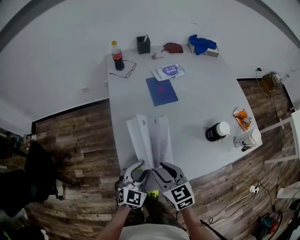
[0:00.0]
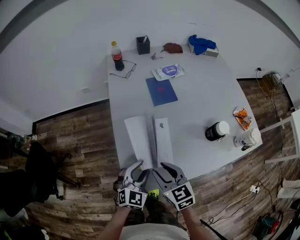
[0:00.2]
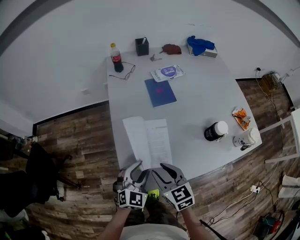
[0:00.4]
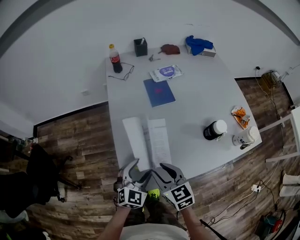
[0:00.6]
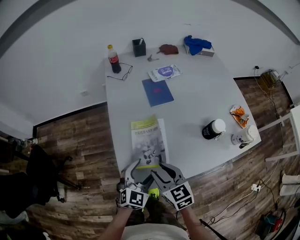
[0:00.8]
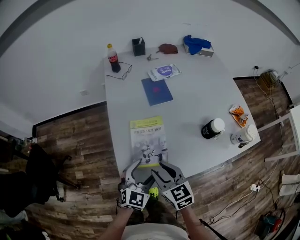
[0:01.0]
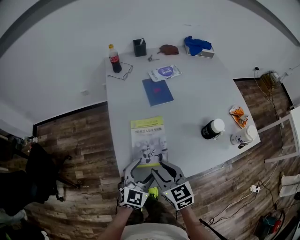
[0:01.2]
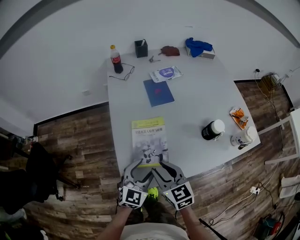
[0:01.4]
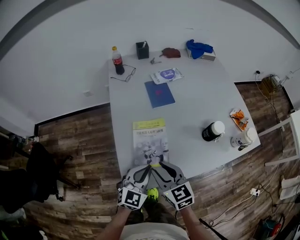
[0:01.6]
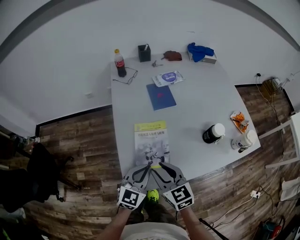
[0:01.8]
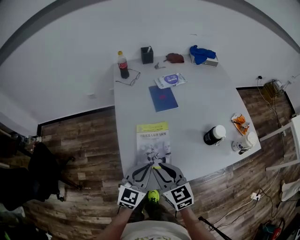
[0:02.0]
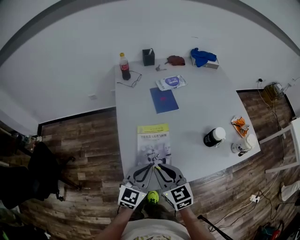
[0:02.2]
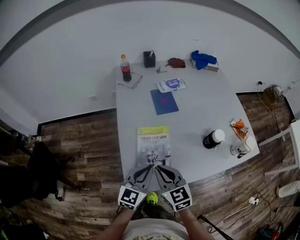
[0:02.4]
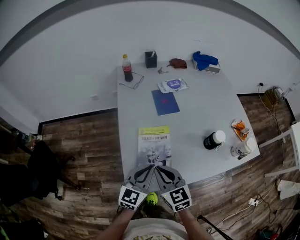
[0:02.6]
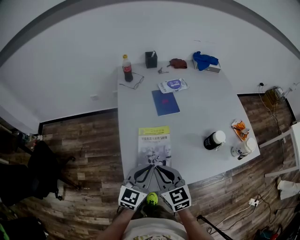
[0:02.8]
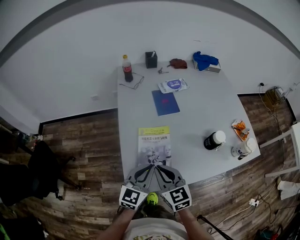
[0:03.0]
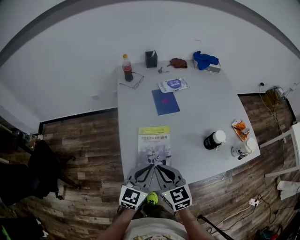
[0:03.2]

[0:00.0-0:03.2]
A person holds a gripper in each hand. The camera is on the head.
0:00.0 to 0:01.6: The left gripper shifts by about 5 cm, and opens, then closes again.
0:01.6 to 0:03.2: The right gripper closes its fingers.

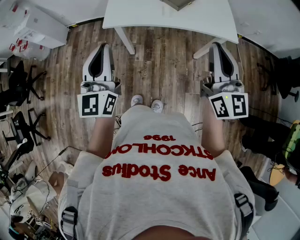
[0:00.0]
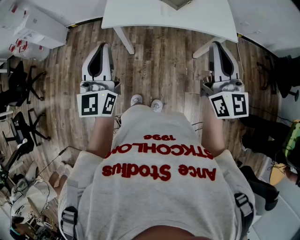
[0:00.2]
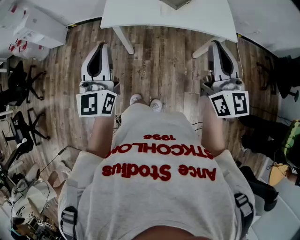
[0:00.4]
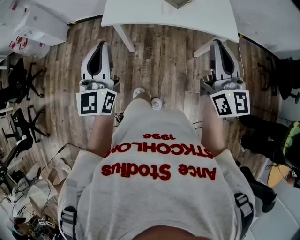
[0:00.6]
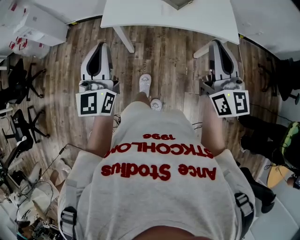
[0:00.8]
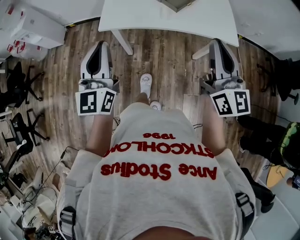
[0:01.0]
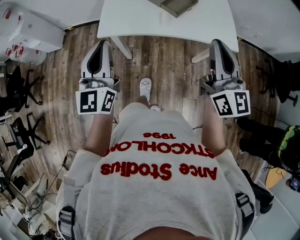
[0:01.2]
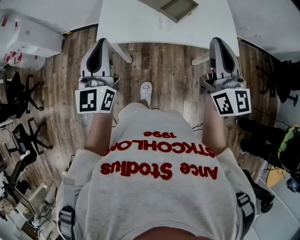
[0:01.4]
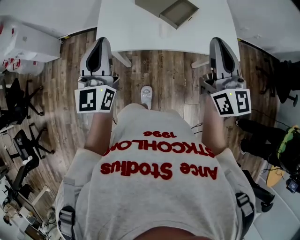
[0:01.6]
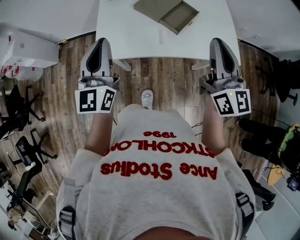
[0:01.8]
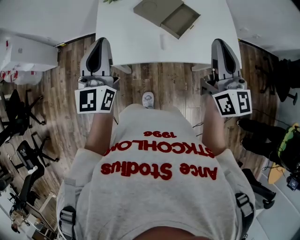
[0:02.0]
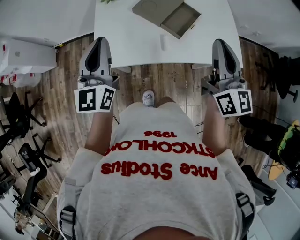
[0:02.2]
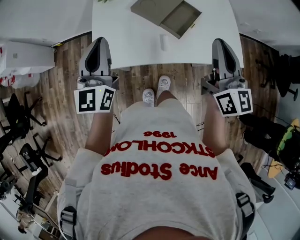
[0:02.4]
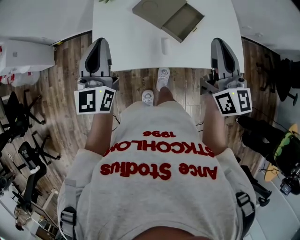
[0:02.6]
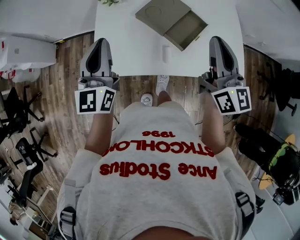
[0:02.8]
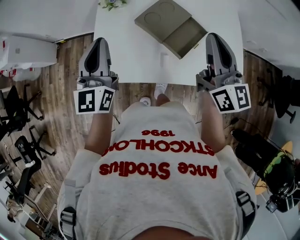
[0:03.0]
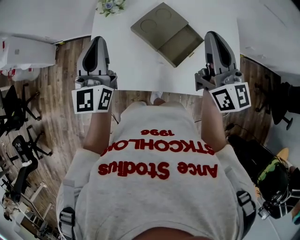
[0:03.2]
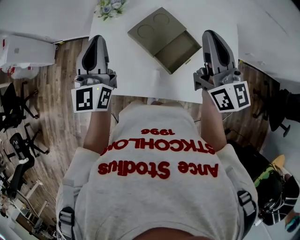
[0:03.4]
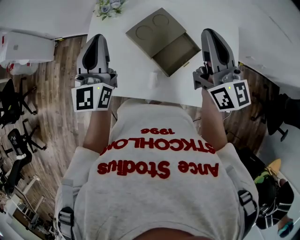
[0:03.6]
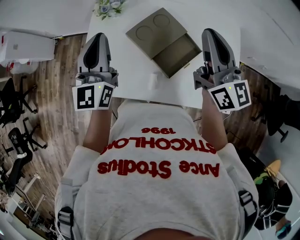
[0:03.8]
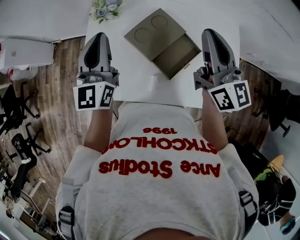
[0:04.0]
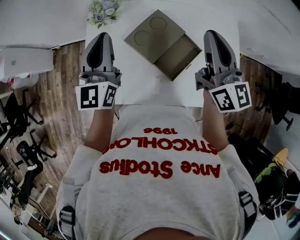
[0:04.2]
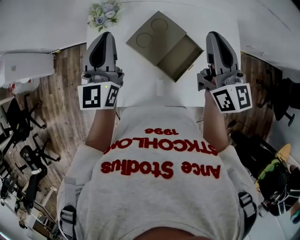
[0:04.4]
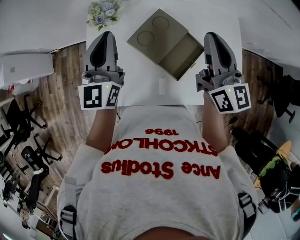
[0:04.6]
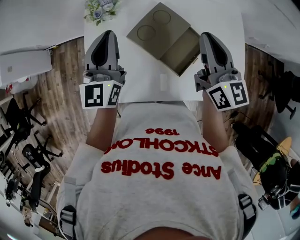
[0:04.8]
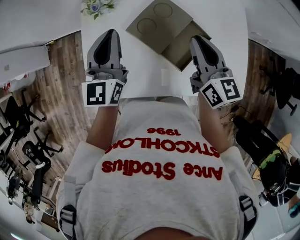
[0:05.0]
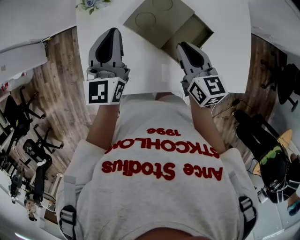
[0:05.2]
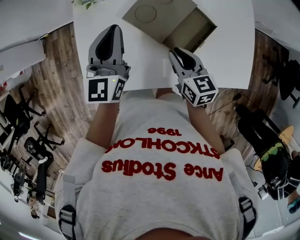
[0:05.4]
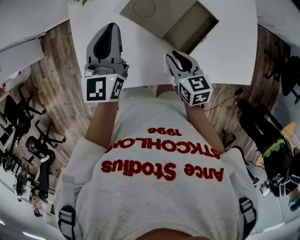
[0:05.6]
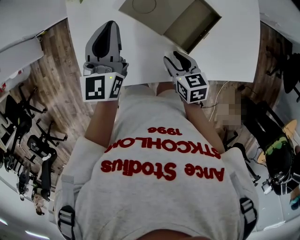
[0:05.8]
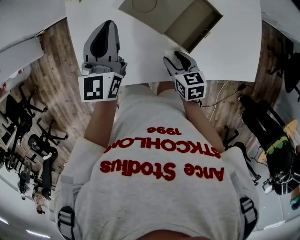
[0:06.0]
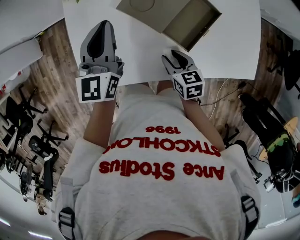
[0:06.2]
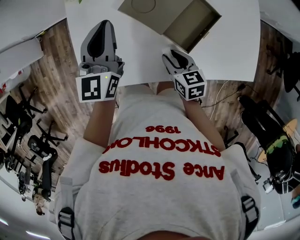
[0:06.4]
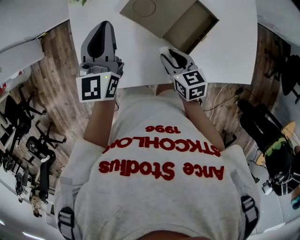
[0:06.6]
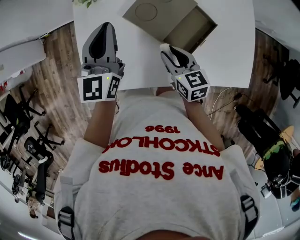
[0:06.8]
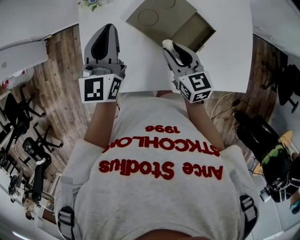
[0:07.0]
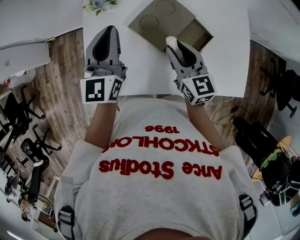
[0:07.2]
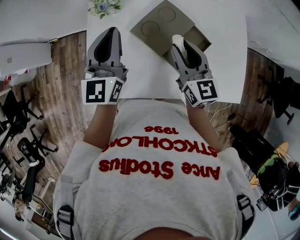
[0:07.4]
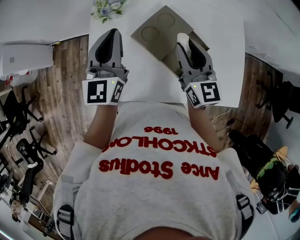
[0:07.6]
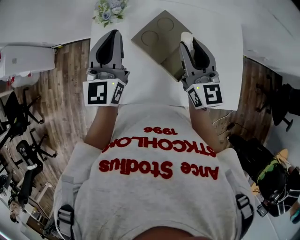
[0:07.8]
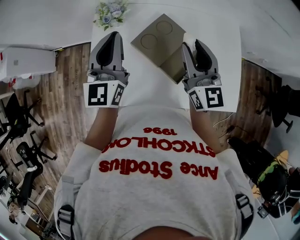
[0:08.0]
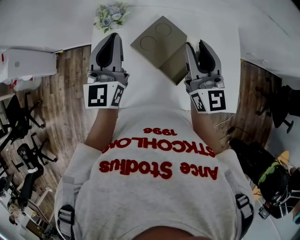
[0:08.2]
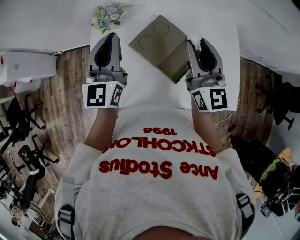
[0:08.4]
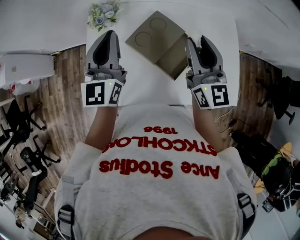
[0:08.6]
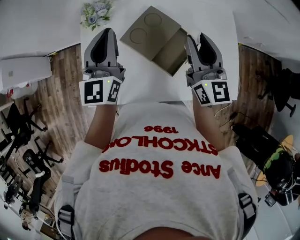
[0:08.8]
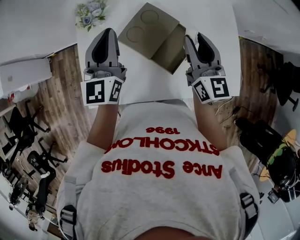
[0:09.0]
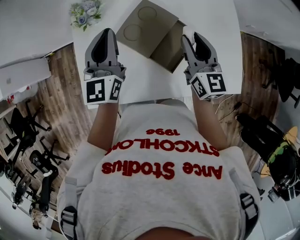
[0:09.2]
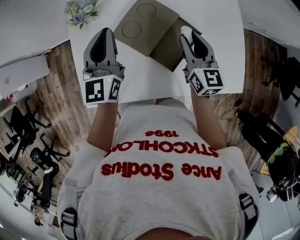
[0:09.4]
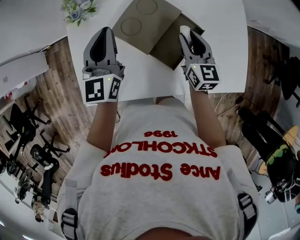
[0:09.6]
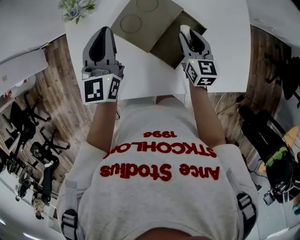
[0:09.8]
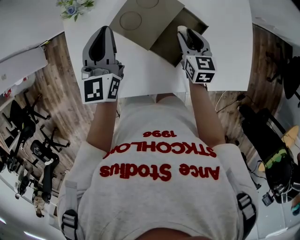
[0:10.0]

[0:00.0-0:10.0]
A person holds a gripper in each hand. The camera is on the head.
0:00.0 to 0:01.4: The two grippers go roughly 15 cm forward.
0:01.4 to 0:02.8: The grippers both shift forward by roughly 20 cm.
0:02.8 to 0:04.2: The left gripper heads forward and to the right, covering some 15 cm. Meanwhile the right gripper is displaced forward by about 15 cm.
0:04.2 to 0:05.8: The left gripper travels downward by roughly 10 cm; the right gripper moves downward and backward, approximately 35 cm, tilts its fingers approximately 50 degrees downward, and opens its fingers.
0:05.8 to 0:07.2: The left gripper travels upward by roughly 5 cm. Meanwhile the right gripper shifts roughly 15 cm upward and forward, and changes its angle by approximately 30 degrees.
0:07.2 to 0:08.6: The left gripper travels upward by approximately 5 cm. Meanwhile the right gripper is displaced upward and to the right by approximately 15 cm, and turns by some 30 degrees.
0:08.6 to 0:10.0: The right gripper goes about 25 cm downward, and points its fingers roughly 40 degrees further downward, while the left gripper moves downward, approximately 10 cm.

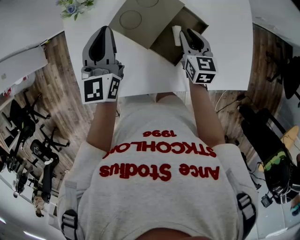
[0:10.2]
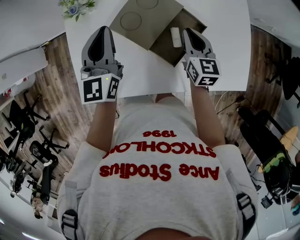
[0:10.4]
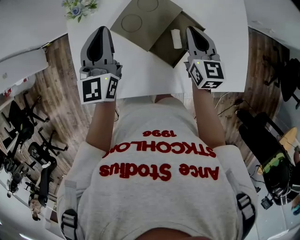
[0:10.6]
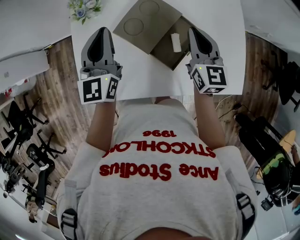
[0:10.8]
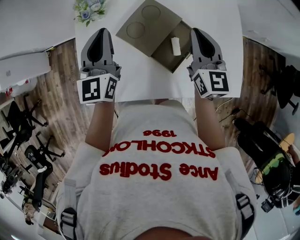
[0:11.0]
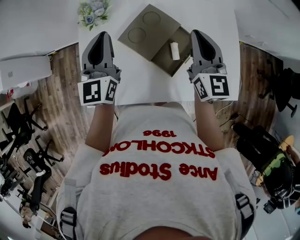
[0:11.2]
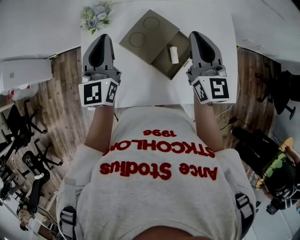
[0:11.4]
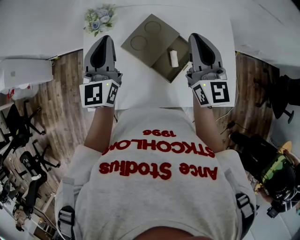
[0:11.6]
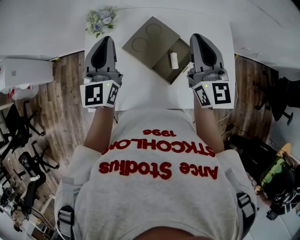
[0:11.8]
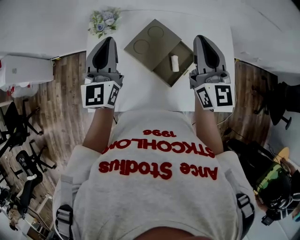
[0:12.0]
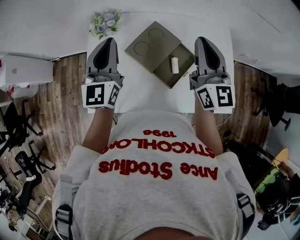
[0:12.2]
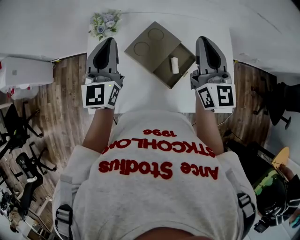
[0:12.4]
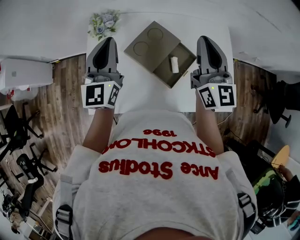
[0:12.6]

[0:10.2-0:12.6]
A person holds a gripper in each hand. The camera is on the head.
0:10.2 to 0:11.4: The right gripper travels upward by some 25 cm, points its fingers about 30 degrees further upward, and closes its fingers; the left gripper travels upward by about 10 cm.
0:11.4 to 0:12.6: The right gripper is displaced upward by approximately 5 cm.

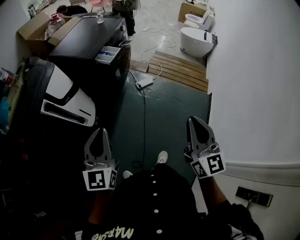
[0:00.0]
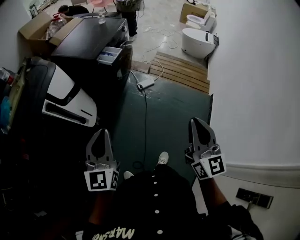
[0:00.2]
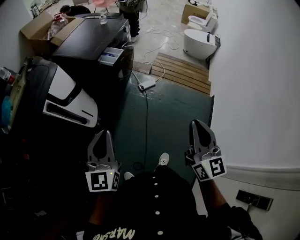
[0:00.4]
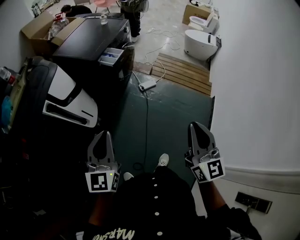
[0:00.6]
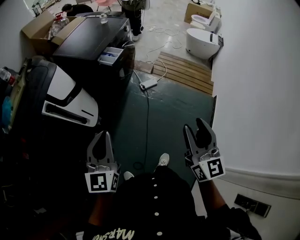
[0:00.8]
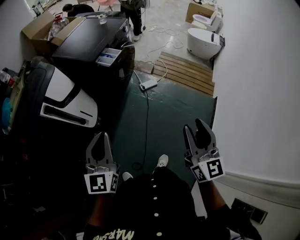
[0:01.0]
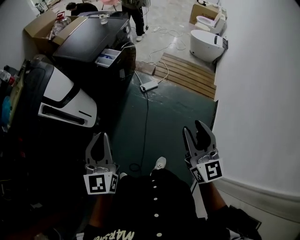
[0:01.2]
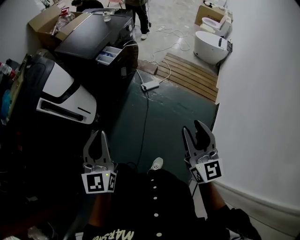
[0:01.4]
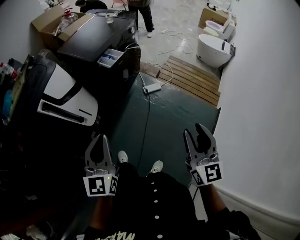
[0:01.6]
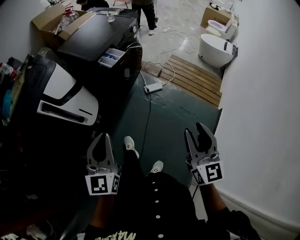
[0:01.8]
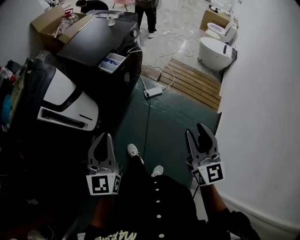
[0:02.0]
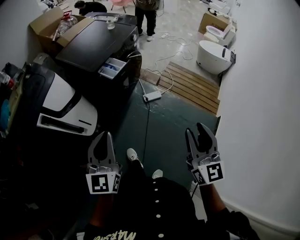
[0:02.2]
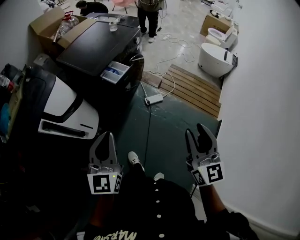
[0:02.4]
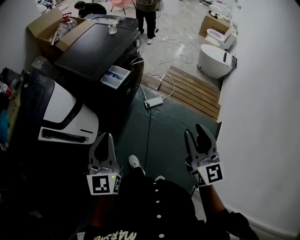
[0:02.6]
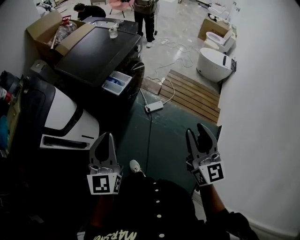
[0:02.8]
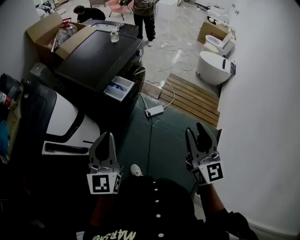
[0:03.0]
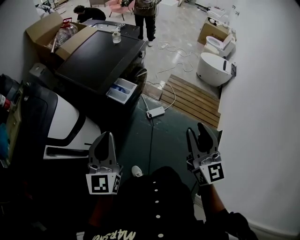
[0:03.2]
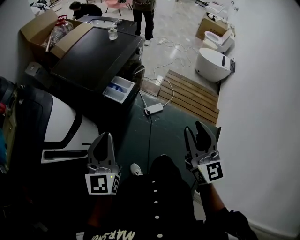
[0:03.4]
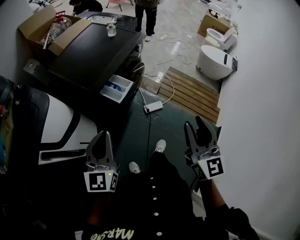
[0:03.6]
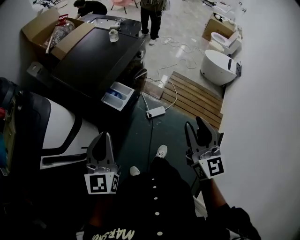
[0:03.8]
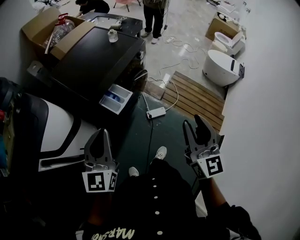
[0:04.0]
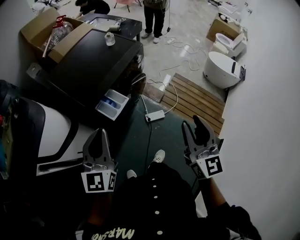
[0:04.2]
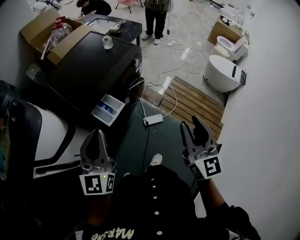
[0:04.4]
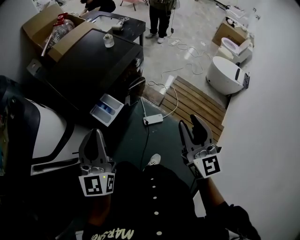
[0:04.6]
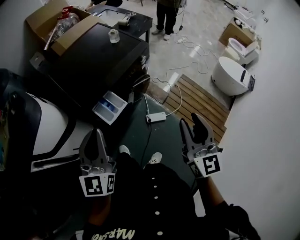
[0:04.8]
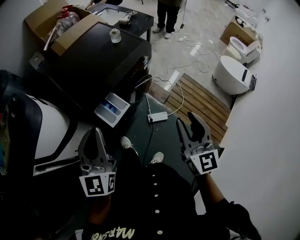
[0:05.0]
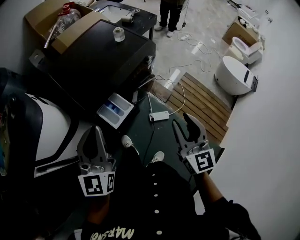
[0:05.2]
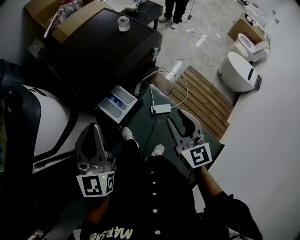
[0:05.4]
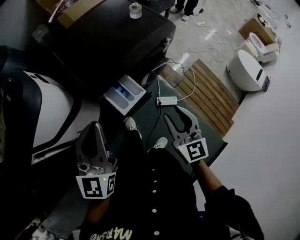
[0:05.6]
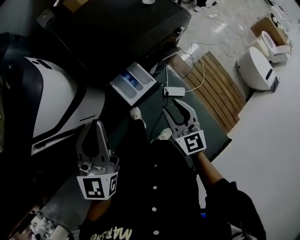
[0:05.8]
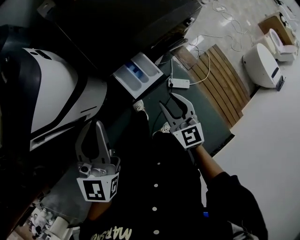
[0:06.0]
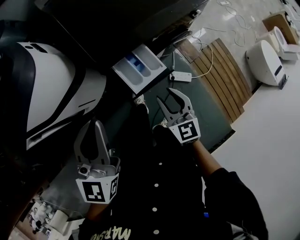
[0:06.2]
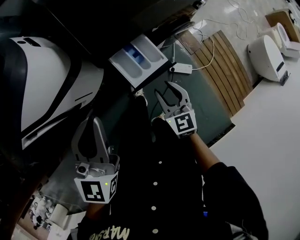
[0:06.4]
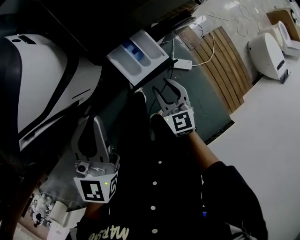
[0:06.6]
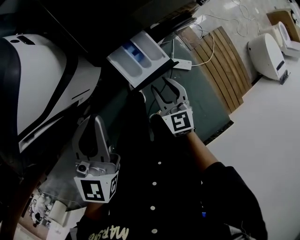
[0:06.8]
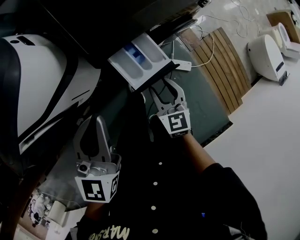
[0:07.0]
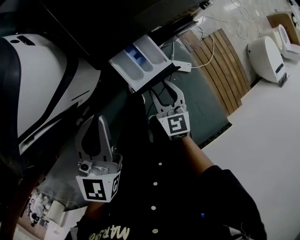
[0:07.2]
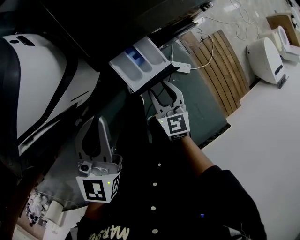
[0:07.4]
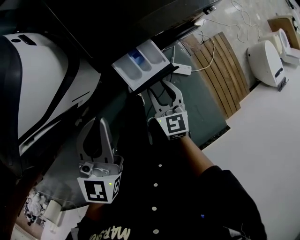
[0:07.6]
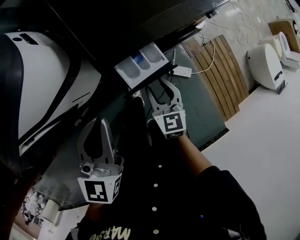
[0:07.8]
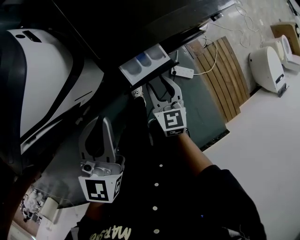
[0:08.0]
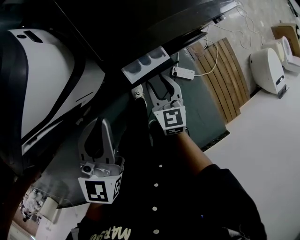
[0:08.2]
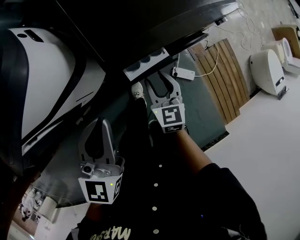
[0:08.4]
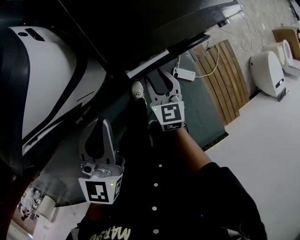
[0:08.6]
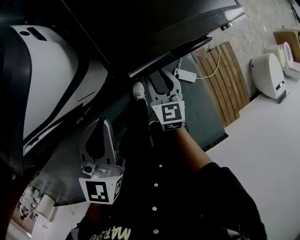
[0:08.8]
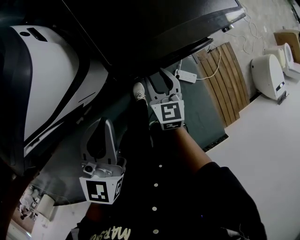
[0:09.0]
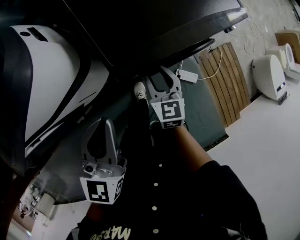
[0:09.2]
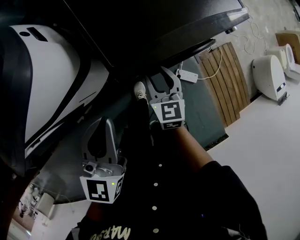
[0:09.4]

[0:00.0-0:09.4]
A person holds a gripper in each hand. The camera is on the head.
0:00.0 to 0:01.6: The left gripper travels to the right by approximately 10 cm; the right gripper shifts approximately 10 cm to the right and forward, and opens.
0:01.6 to 0:03.2: The two grippers go approximately 25 cm forward.
0:03.2 to 0:04.8: The right gripper is displaced forward by roughly 25 cm; the left gripper goes approximately 20 cm forward and to the right.
0:04.8 to 0:06.2: The right gripper goes roughly 35 cm downward and to the left, and swivels approximately 40 degrees. Meanwhile the left gripper shifts some 10 cm to the left and downward.
0:06.2 to 0:07.8: The left gripper is displaced downward by roughly 5 cm. The right gripper heads forward and downward, covering roughly 10 cm.
0:07.8 to 0:09.4: The left gripper moves roughly 5 cm, while the right gripper goes roughly 10 cm forward.
